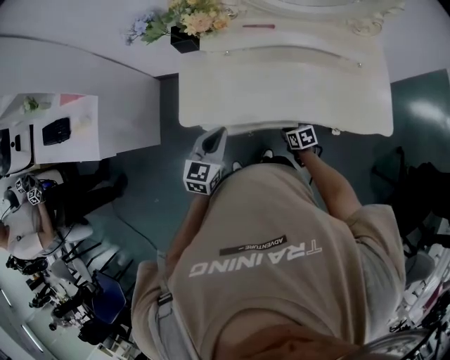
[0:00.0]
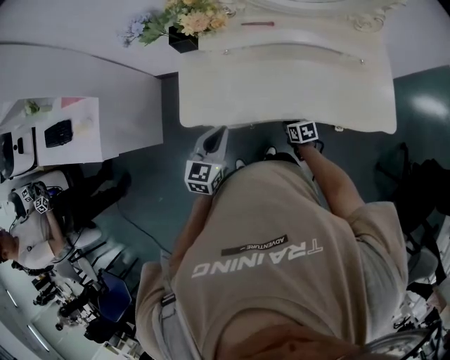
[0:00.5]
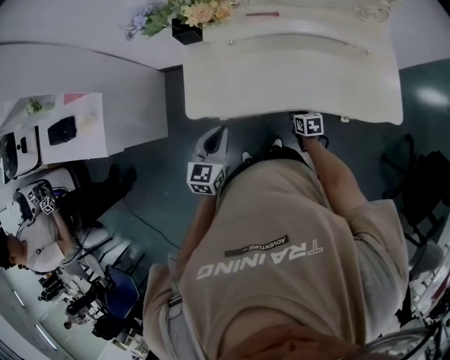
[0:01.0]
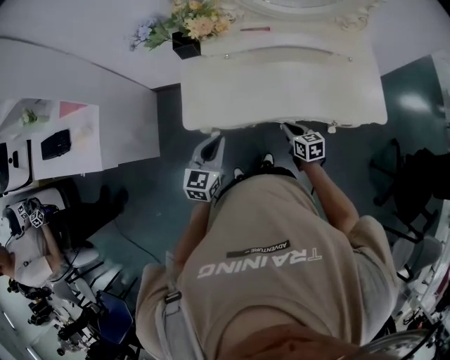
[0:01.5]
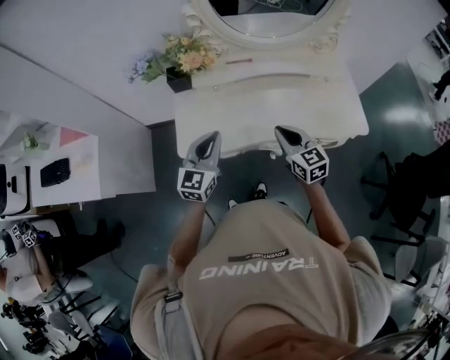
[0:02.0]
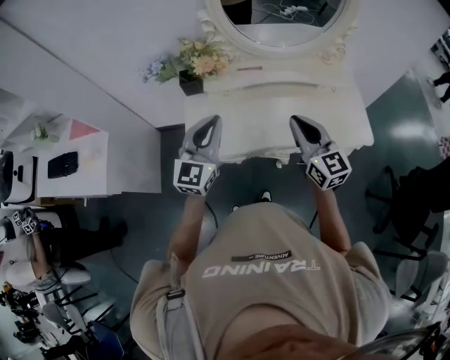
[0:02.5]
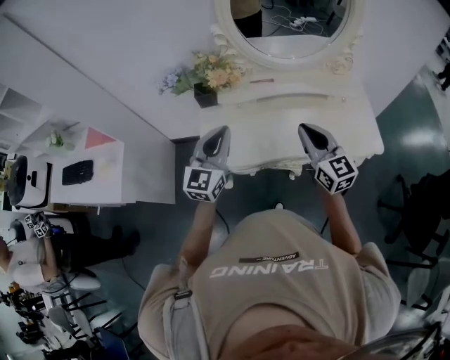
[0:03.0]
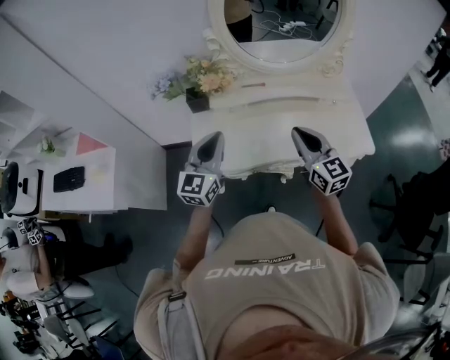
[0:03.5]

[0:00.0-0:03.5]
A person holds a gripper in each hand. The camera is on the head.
0:00.0 to 0:02.0: The right gripper goes some 35 cm upward, and tips its fingers upward by roughly 40 degrees; the left gripper is displaced upward by roughly 10 cm.
0:02.0 to 0:03.5: The two grippers go roughly 10 cm upward.

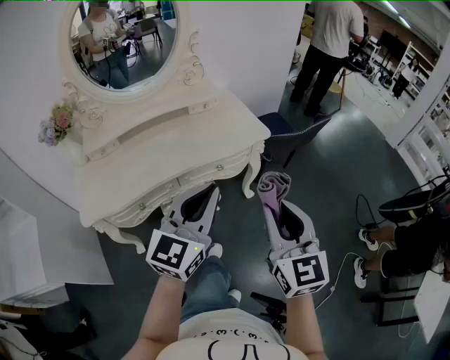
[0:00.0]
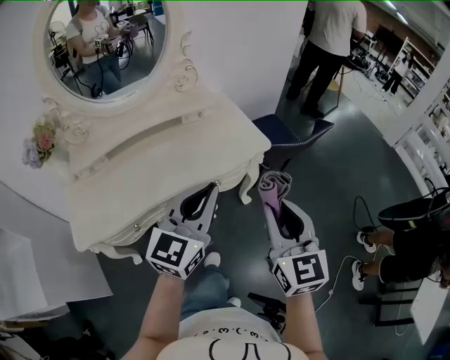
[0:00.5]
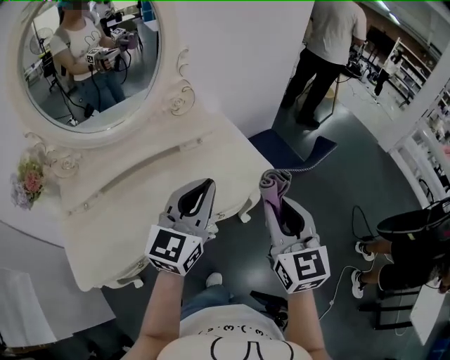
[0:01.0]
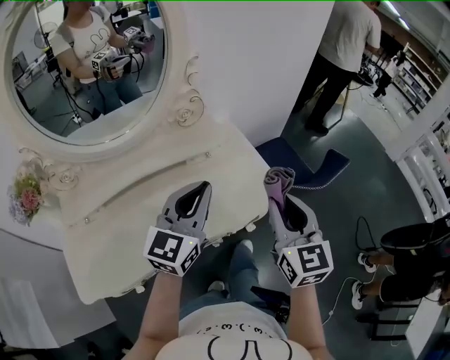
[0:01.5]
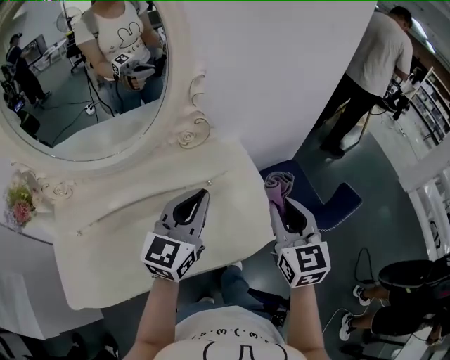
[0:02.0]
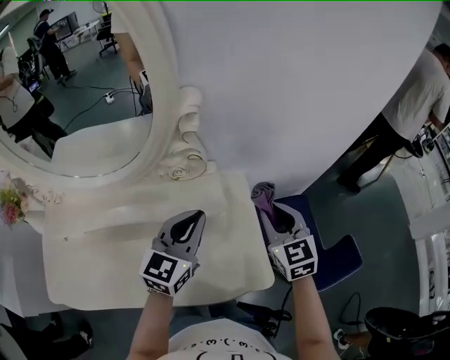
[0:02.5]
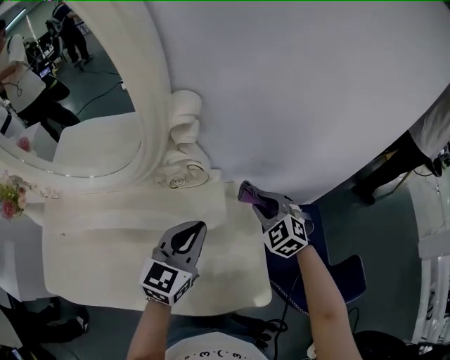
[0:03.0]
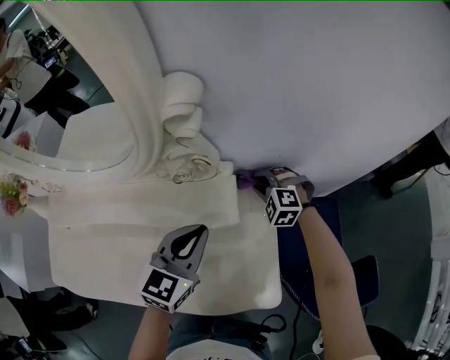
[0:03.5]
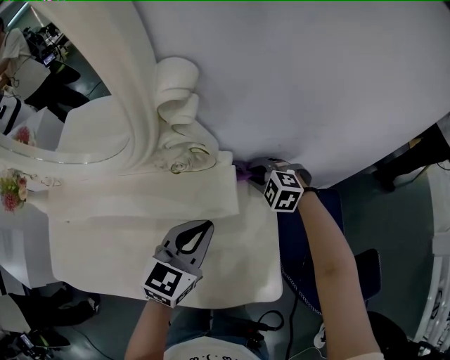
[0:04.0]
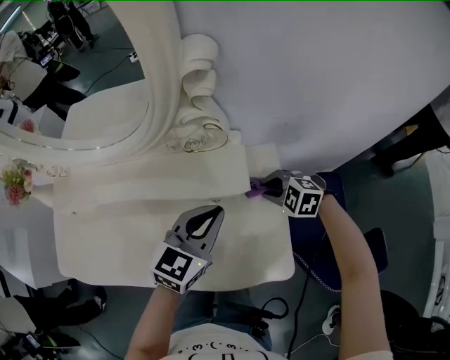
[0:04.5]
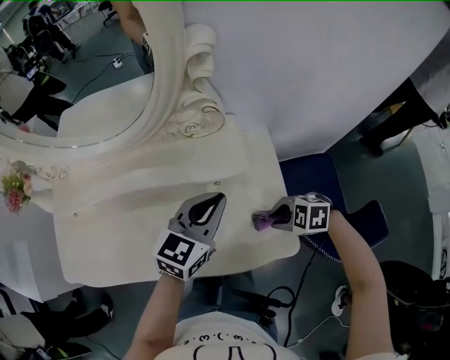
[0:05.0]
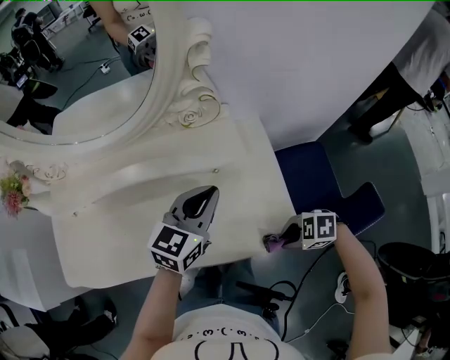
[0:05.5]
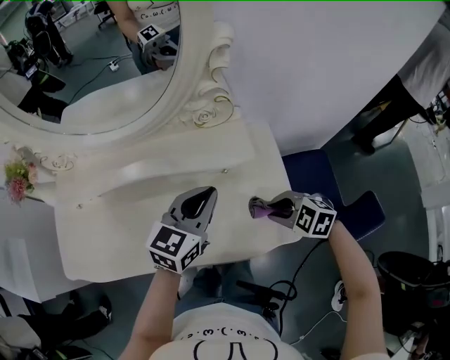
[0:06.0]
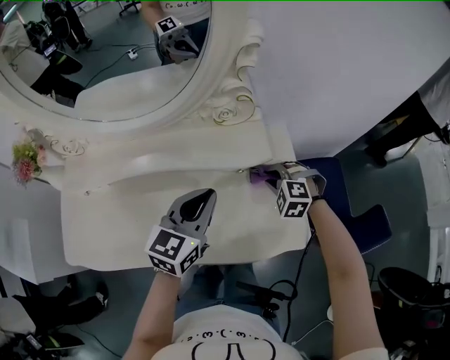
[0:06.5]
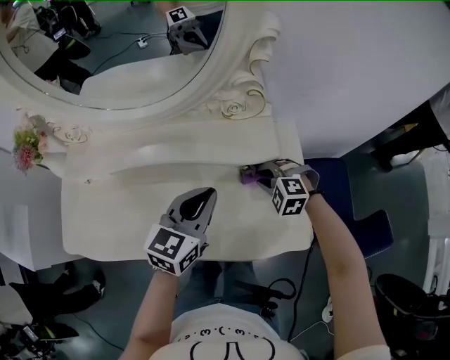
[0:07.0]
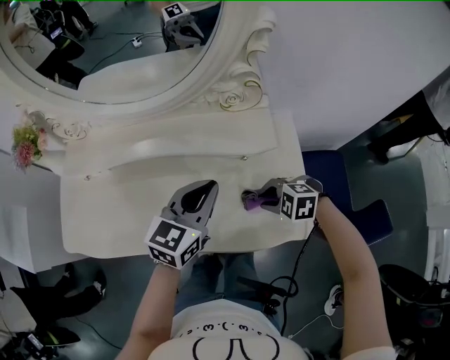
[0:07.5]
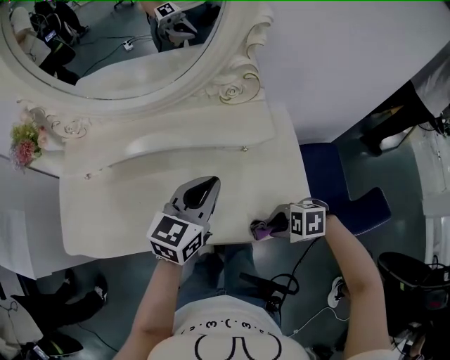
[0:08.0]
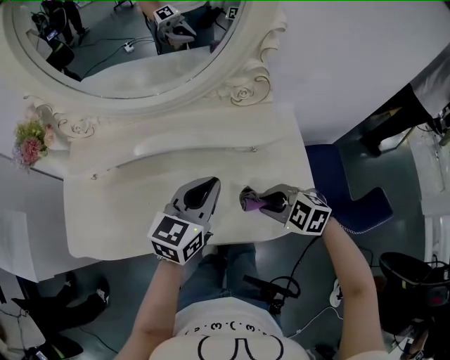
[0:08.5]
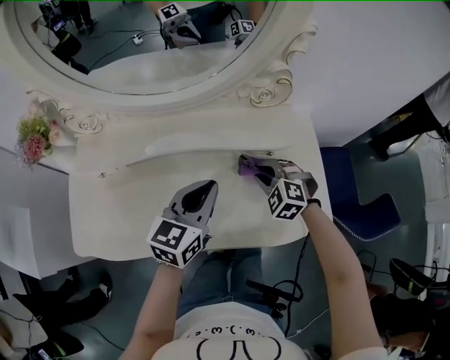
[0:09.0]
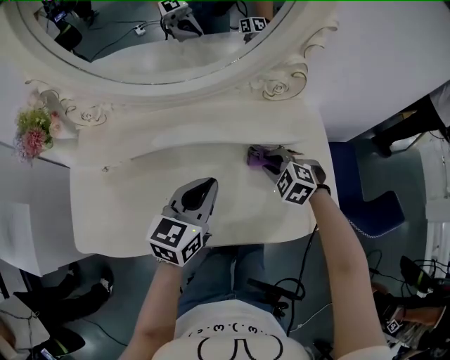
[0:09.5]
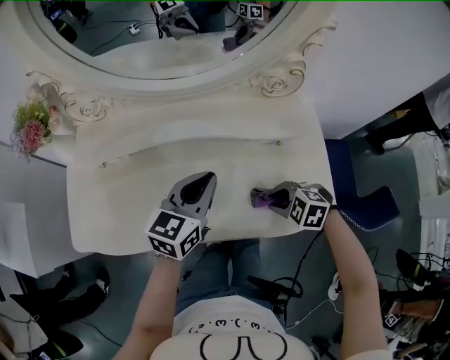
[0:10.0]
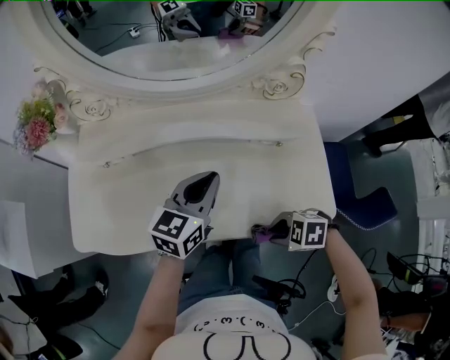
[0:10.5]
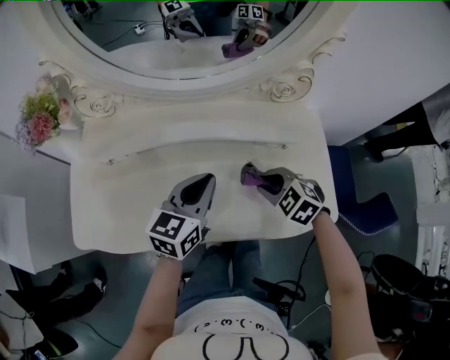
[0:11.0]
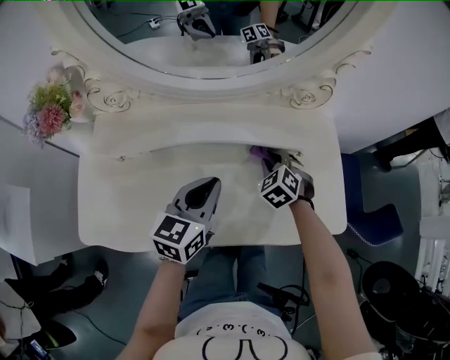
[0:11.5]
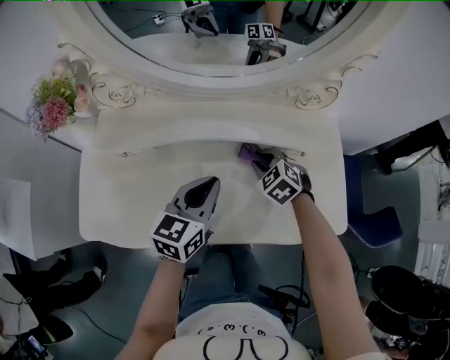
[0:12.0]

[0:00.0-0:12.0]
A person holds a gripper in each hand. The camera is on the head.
0:00.0 to 0:02.0: The two grippers travel together, forward, roughly 50 cm.
0:02.0 to 0:04.0: The right gripper ends up some 40 cm from where it was, and tips its fingers downward by roughly 40 degrees; the left gripper changes place by some 20 cm, and changes its angle by about 20 degrees.
0:04.0 to 0:06.0: The right gripper moves roughly 30 cm, and swivels about 20 degrees. Meanwhile the left gripper ends up approximately 10 cm from where it was.
0:06.0 to 0:08.0: The left gripper shifts by some 5 cm, while the right gripper moves about 15 cm, and changes its angle by approximately 30 degrees.
0:08.0 to 0:10.0: The left gripper shifts by about 10 cm.
0:10.0 to 0:12.0: The left gripper shifts by approximately 5 cm. Meanwhile the right gripper shifts by about 20 cm, and rotates roughly 30 degrees.

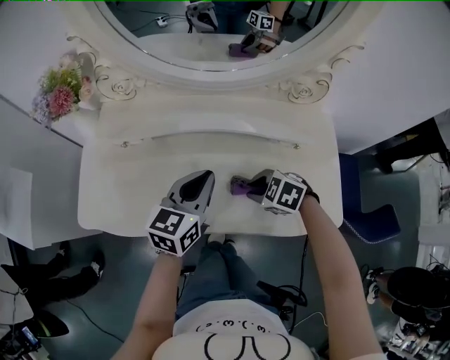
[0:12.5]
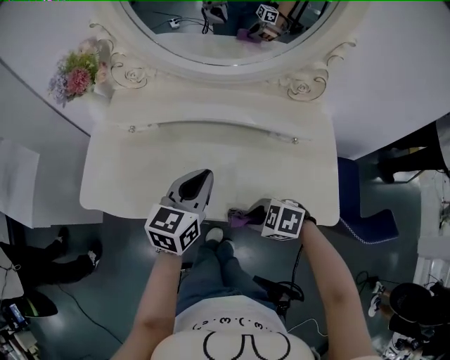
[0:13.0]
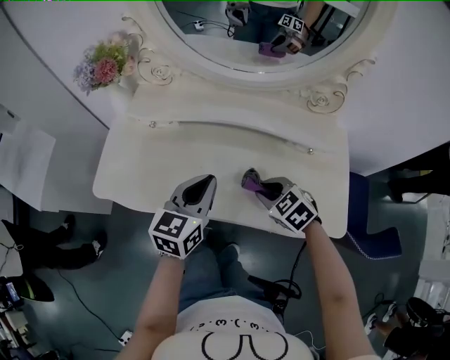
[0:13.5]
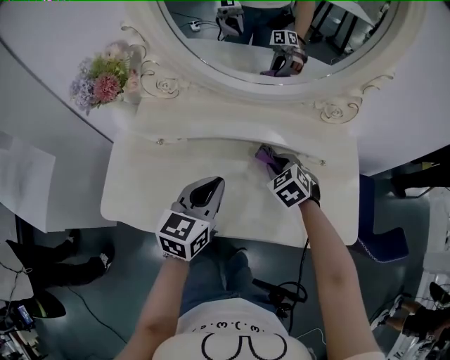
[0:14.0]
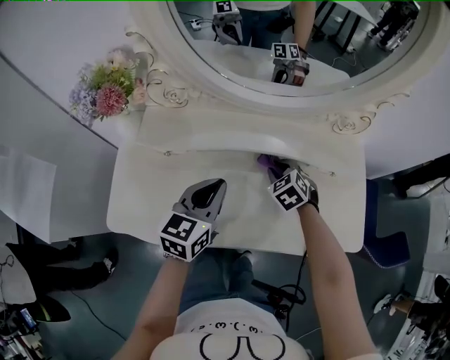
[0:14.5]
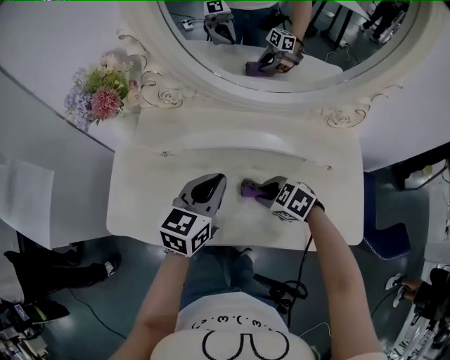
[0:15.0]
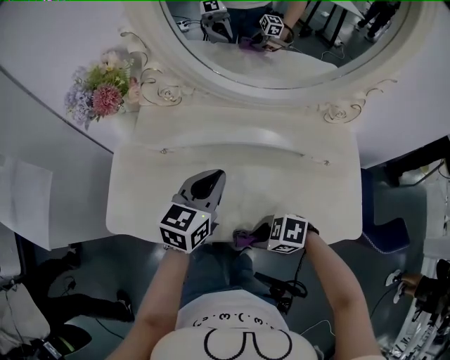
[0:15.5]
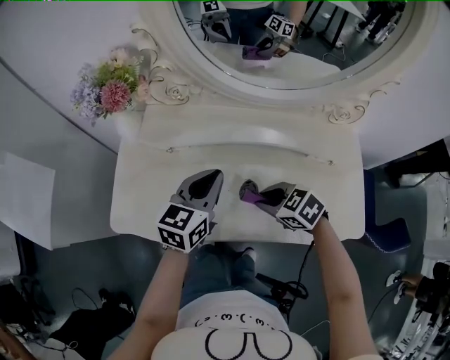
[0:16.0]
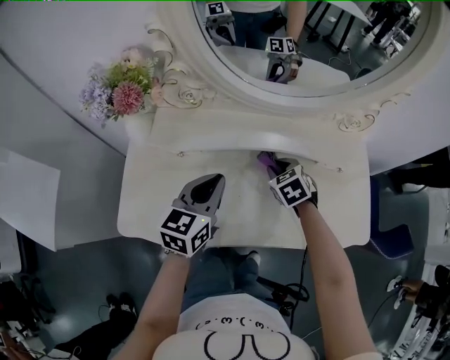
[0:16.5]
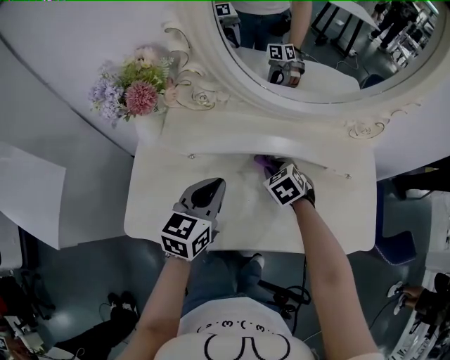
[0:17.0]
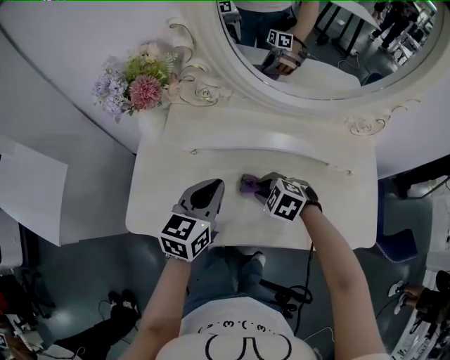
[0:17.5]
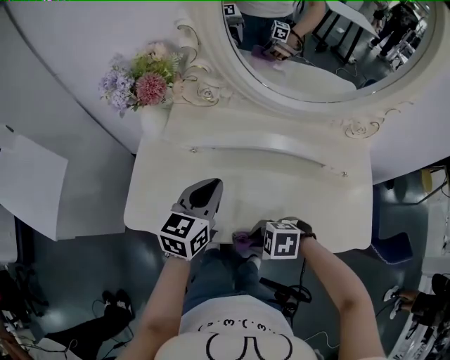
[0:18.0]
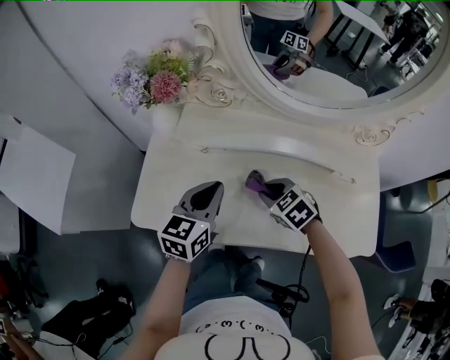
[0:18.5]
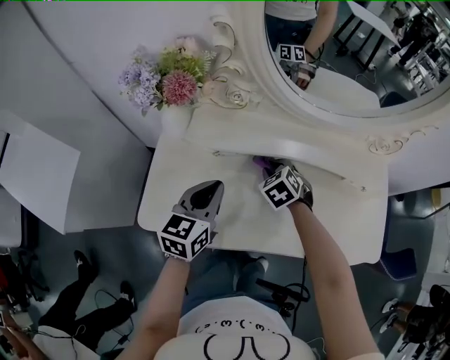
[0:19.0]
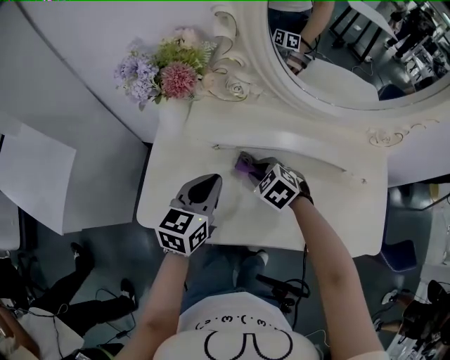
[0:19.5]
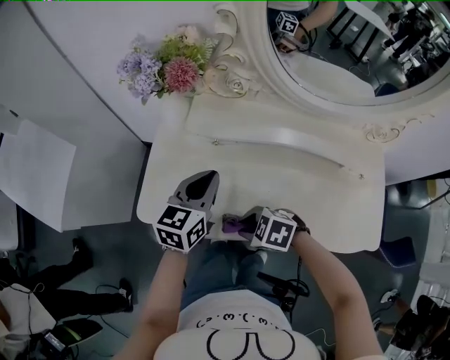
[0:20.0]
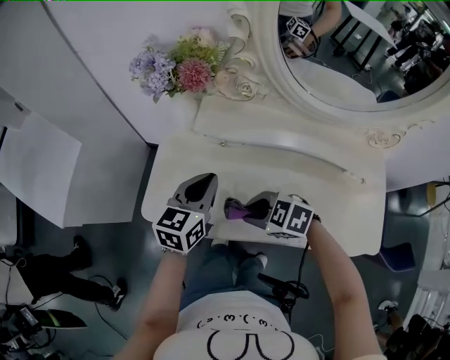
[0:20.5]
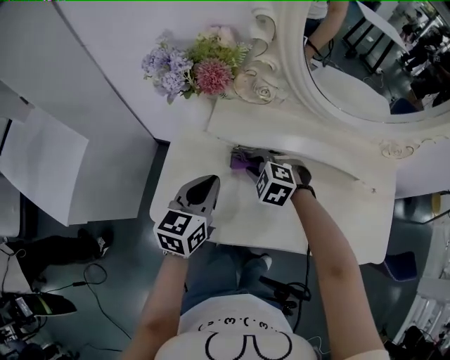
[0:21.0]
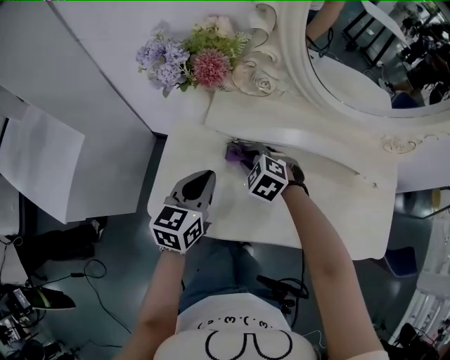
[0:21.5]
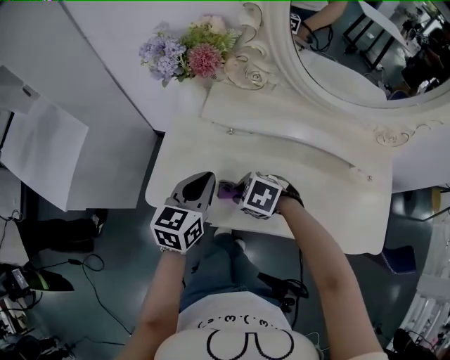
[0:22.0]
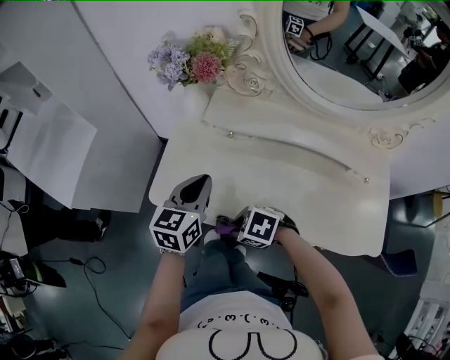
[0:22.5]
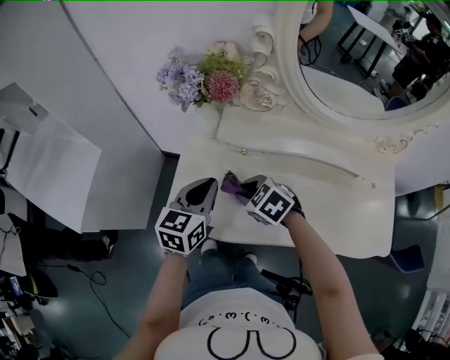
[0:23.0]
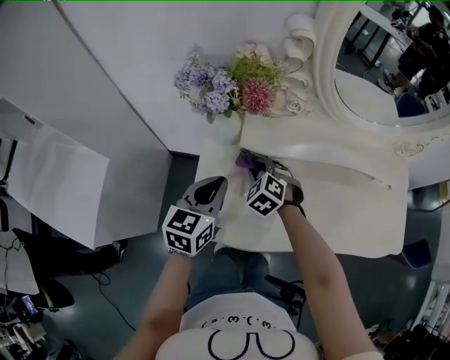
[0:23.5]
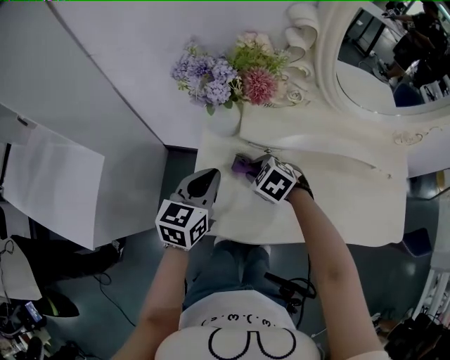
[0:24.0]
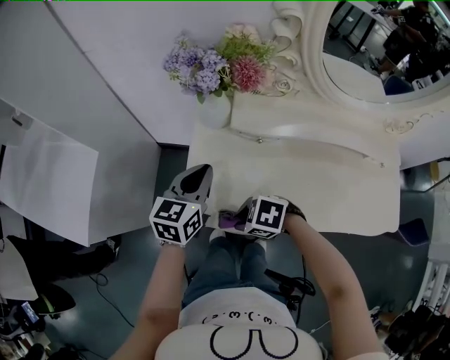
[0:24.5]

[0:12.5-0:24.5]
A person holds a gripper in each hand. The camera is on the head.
0:12.5 to 0:14.5: The right gripper ends up roughly 15 cm from where it was, and turns by some 30 degrees. Meanwhile the left gripper changes place by about 10 cm.
0:14.5 to 0:16.5: The left gripper shifts by some 5 cm.
0:16.5 to 0:18.5: The right gripper changes its angle by about 20 degrees, while the left gripper ends up approximately 5 cm from where it was.
0:18.5 to 0:20.5: The right gripper shifts by some 15 cm, and swivels about 30 degrees. Meanwhile the left gripper moves about 10 cm.
0:20.5 to 0:22.5: The left gripper changes place by about 5 cm.
0:22.5 to 0:24.5: The left gripper moves approximately 15 cm.
